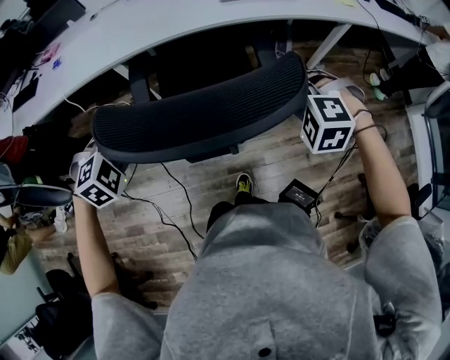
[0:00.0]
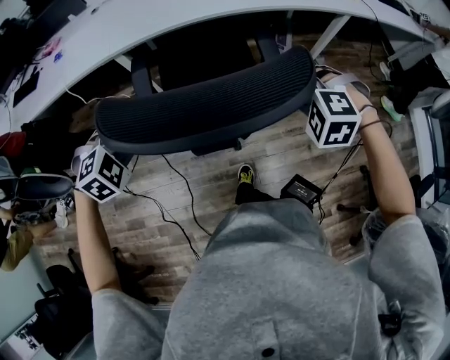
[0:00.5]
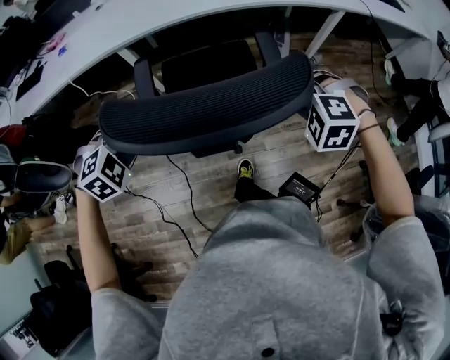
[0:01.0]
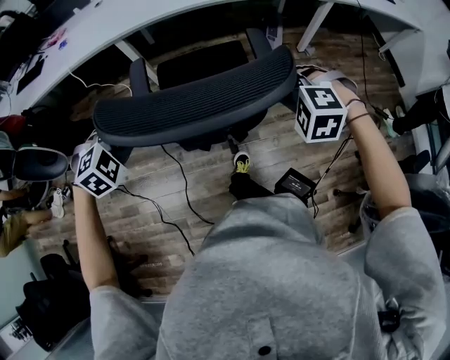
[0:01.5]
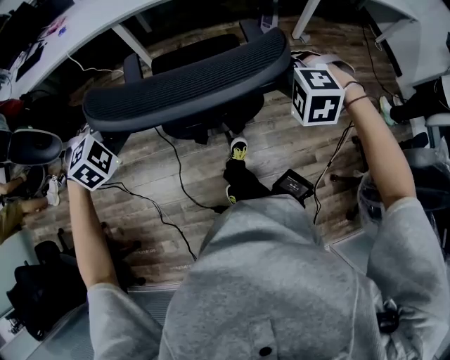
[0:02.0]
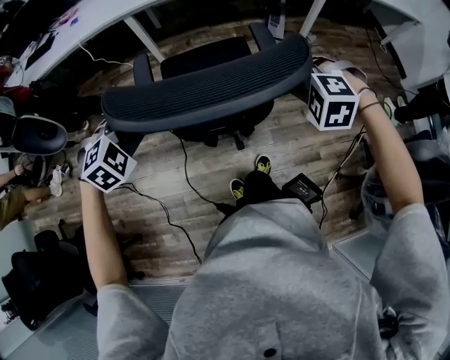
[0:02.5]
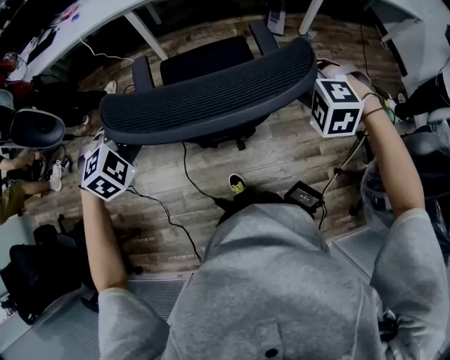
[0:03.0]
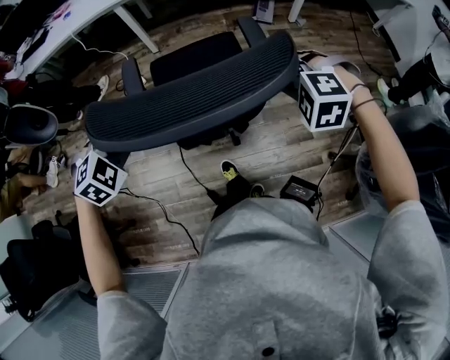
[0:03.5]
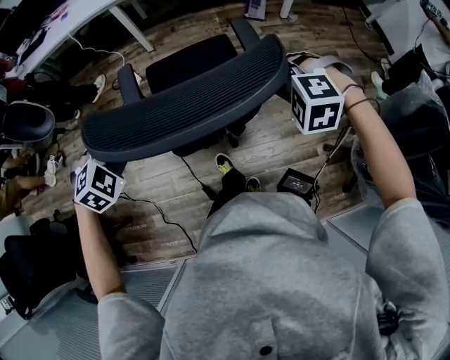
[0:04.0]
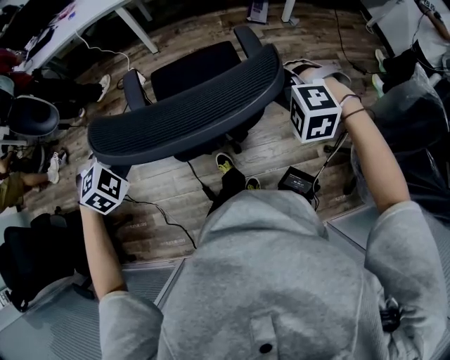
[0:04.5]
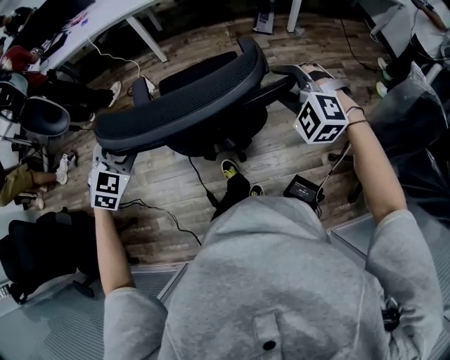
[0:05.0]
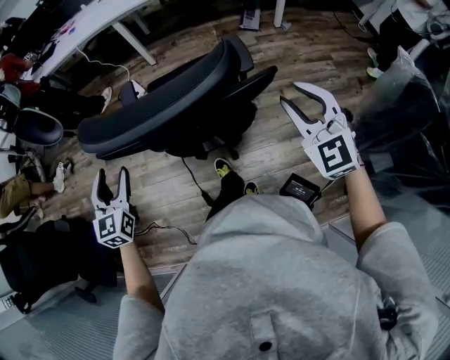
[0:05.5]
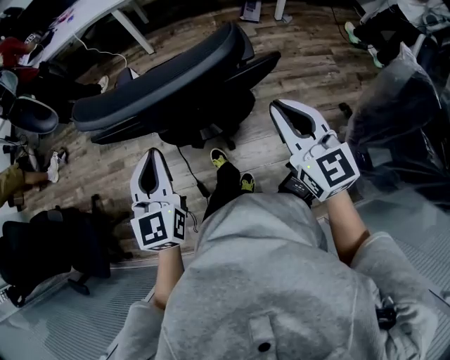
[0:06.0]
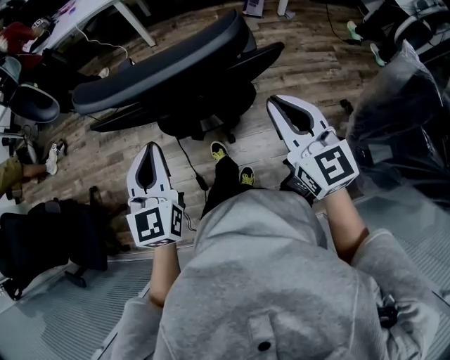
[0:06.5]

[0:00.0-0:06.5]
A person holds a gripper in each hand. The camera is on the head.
0:00.0 to 0:02.0: Both grippers travel together backward, some 25 cm.
0:02.0 to 0:04.5: Both grippers travel together backward, roughly 25 cm.
0:04.5 to 0:06.5: The left gripper is displaced backward, to the right and upward by some 20 cm, points its fingers approximately 40 degrees further upward, and opens, then closes once more. Meanwhile the right gripper moves backward and upward, some 15 cm, and points its fingers about 50 degrees further upward.

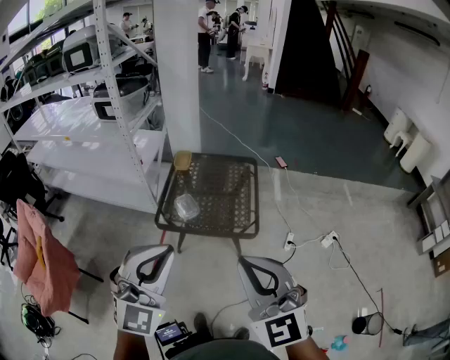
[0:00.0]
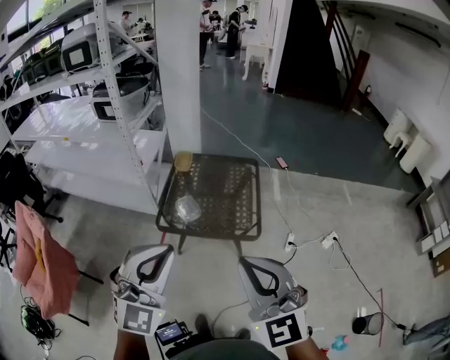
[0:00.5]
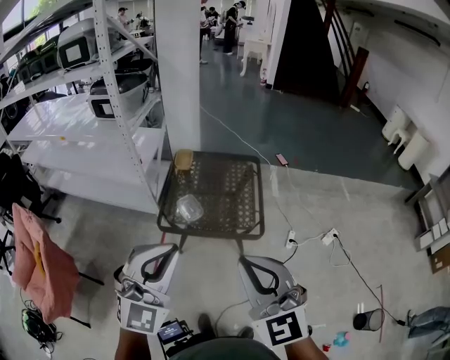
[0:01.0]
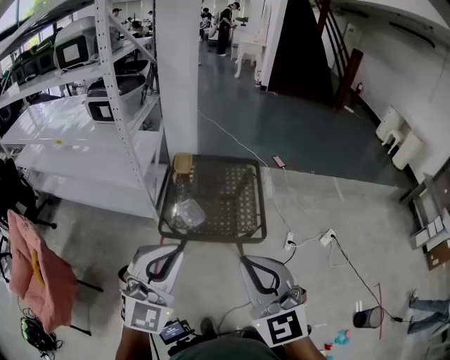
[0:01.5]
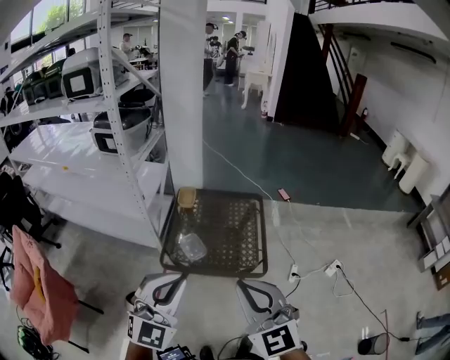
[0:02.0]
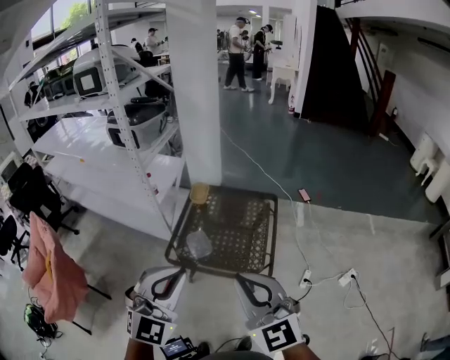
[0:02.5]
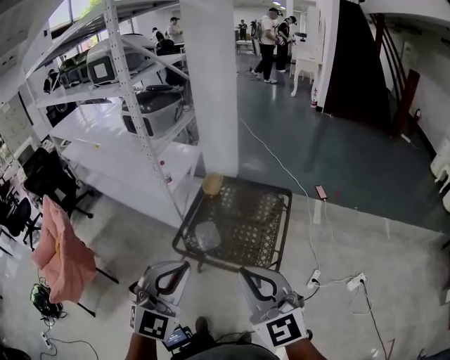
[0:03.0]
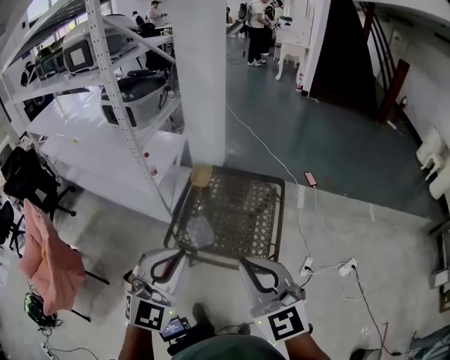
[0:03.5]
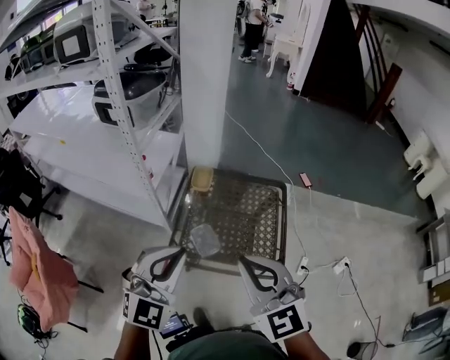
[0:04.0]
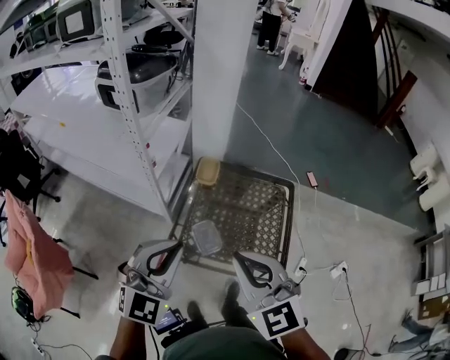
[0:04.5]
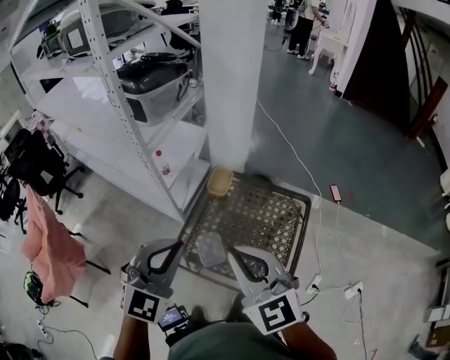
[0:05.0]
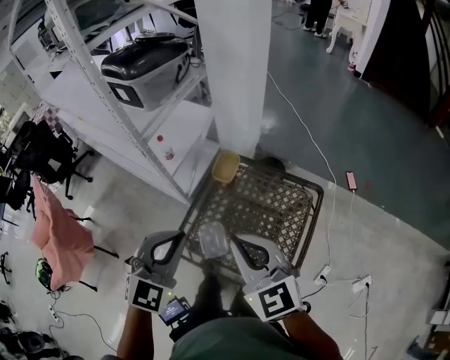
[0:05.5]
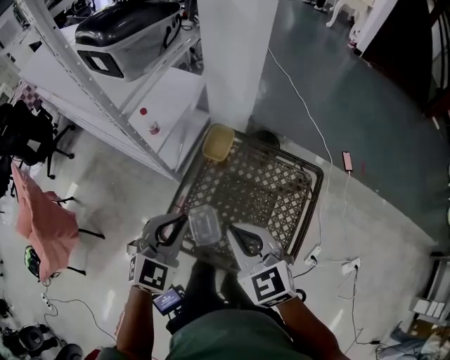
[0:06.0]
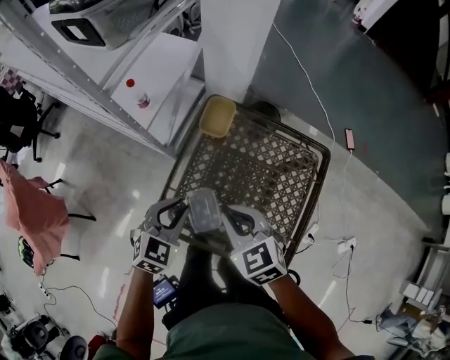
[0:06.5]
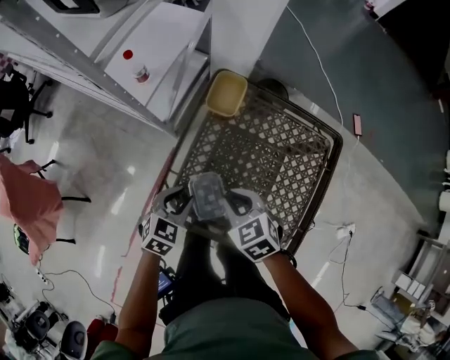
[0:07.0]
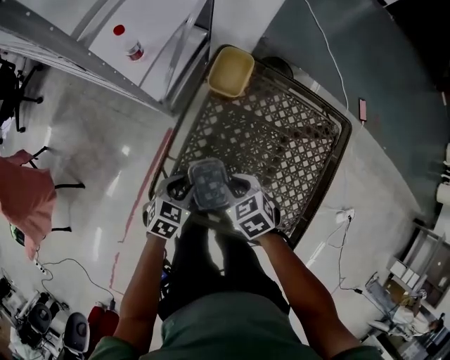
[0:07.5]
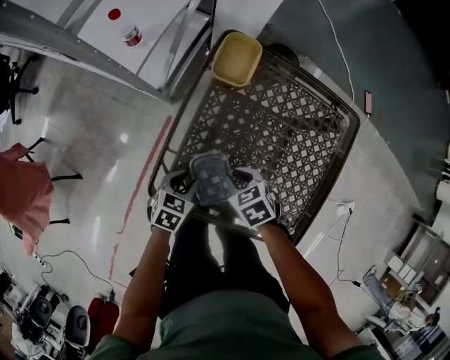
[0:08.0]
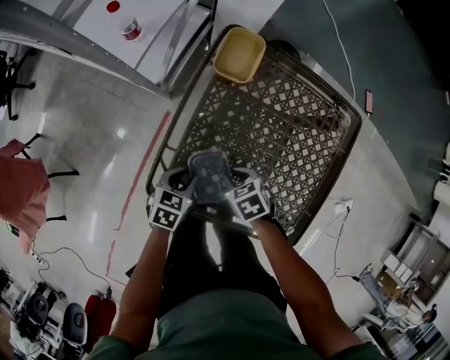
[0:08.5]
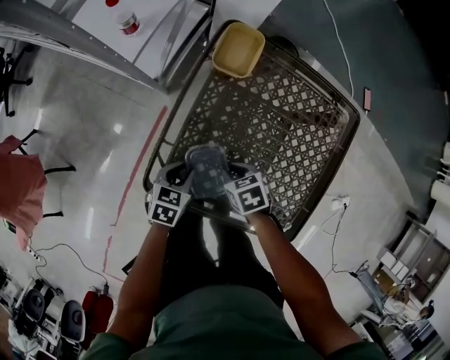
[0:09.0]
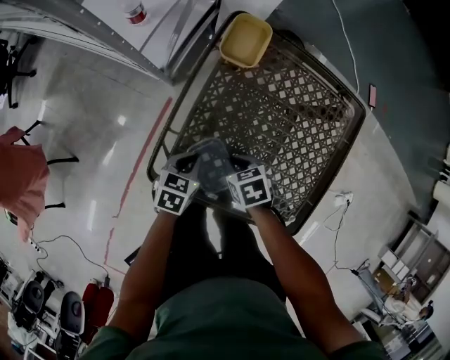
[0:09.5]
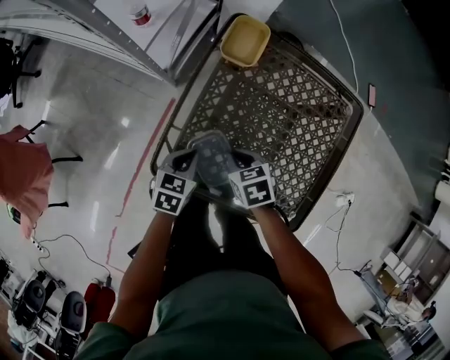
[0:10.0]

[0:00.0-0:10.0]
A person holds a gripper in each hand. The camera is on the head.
0:00.0 to 0:02.0: The grippers both shift forward and to the left by roughly 15 cm.
0:02.0 to 0:04.0: Both grippers travel together forward, about 20 cm.
0:04.0 to 0:06.0: The grippers both shift forward and downward by roughly 35 cm. The left gripper turns by about 30 degrees; the right gripper changes its angle by some 20 degrees.
0:06.0 to 0:08.0: The grippers both shift downward by about 40 cm. The left gripper rotates roughly 50 degrees, and opens; the right gripper angles its fingers downward, by about 40 degrees.
0:08.0 to 0:10.0: The left gripper closes up.

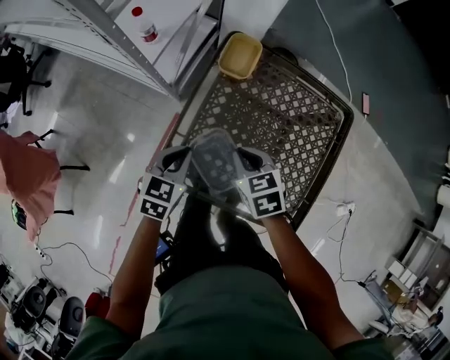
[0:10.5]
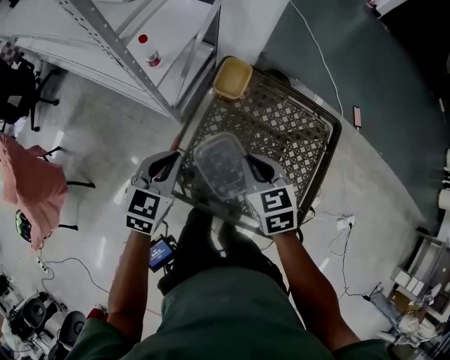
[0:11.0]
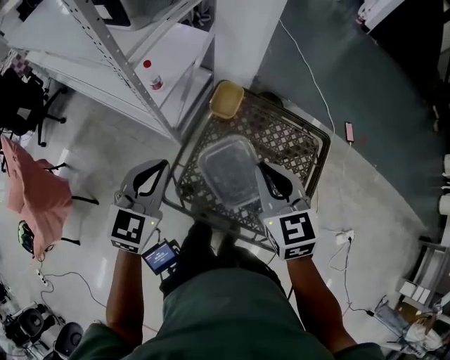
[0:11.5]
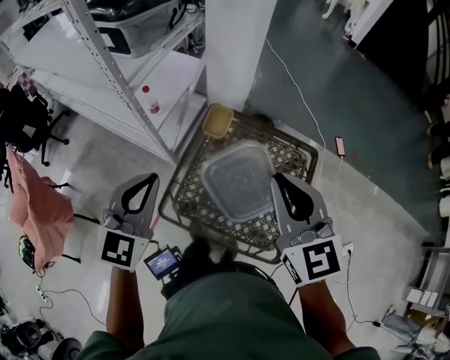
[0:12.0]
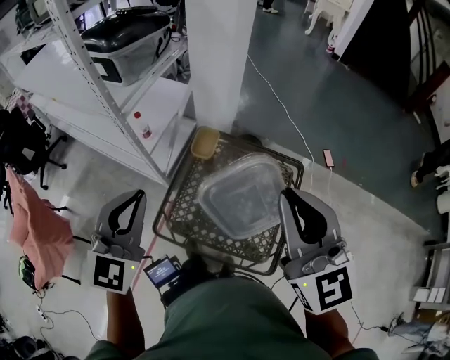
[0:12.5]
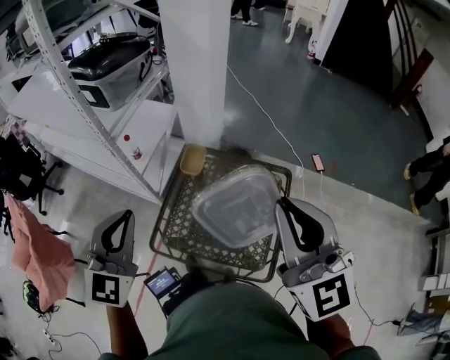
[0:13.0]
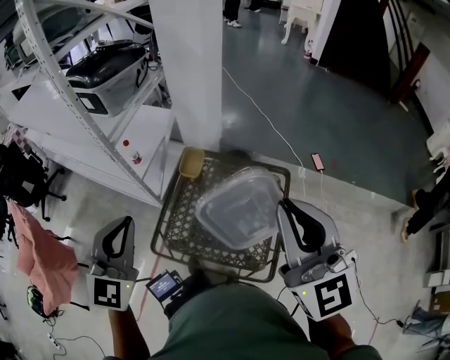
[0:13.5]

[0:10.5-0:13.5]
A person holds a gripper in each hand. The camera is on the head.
0:10.5 to 0:12.0: Both grippers travel together upward, about 35 cm. The left gripper swivels roughly 40 degrees, while the right gripper tilts its fingers some 40 degrees upward.
0:12.0 to 0:13.5: The left gripper shifts some 10 cm upward and backward; the right gripper shifts some 20 cm upward, to the right and backward.

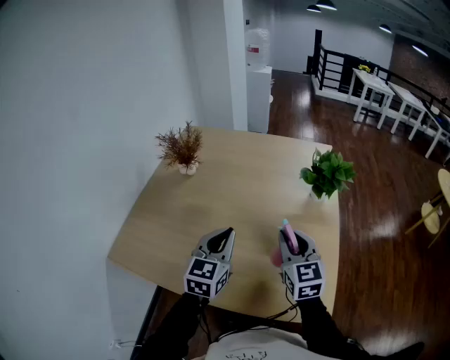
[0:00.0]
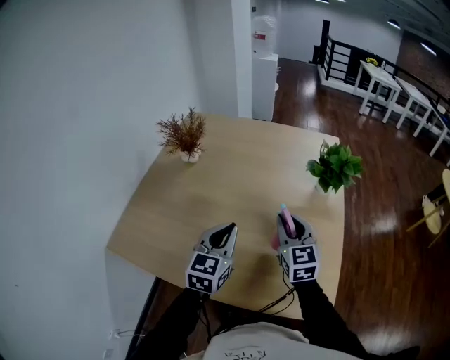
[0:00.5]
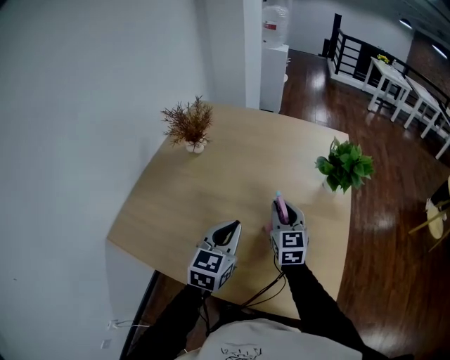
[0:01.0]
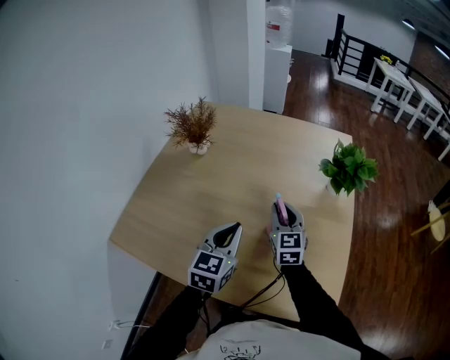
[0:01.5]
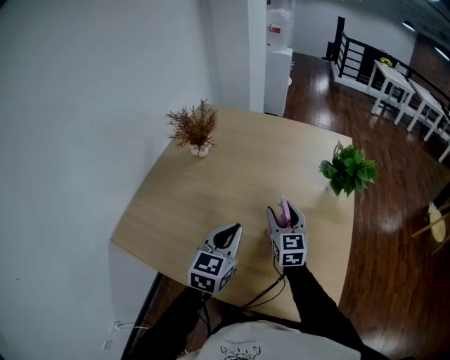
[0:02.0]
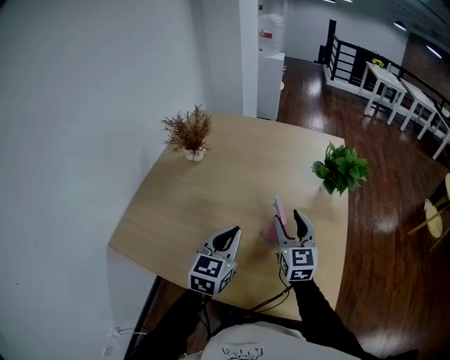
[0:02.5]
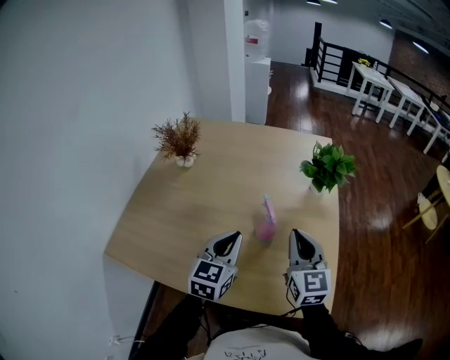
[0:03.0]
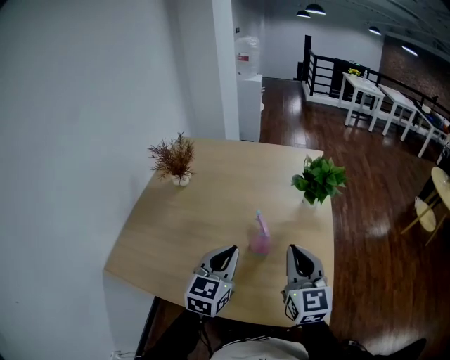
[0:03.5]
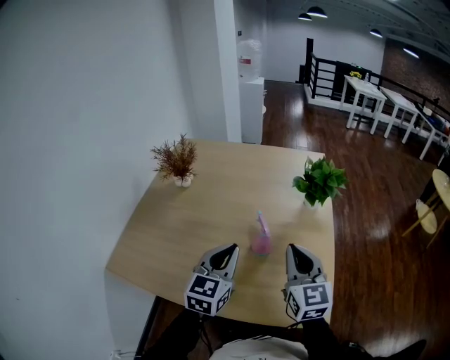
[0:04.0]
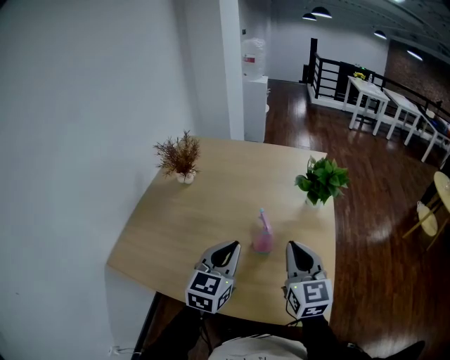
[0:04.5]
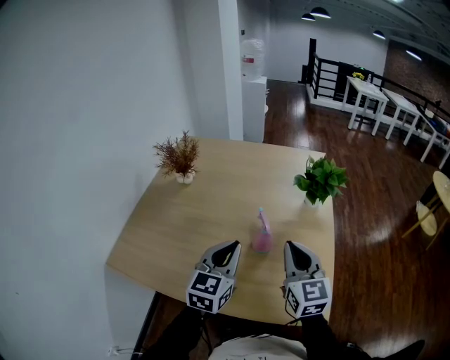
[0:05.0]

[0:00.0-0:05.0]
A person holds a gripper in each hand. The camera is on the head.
0:00.0 to 0:02.5: The right gripper travels forward by some 5 cm, and opens.
0:02.5 to 0:05.0: The left gripper goes roughly 5 cm upward; the right gripper moves backward and upward, some 15 cm, and closes.

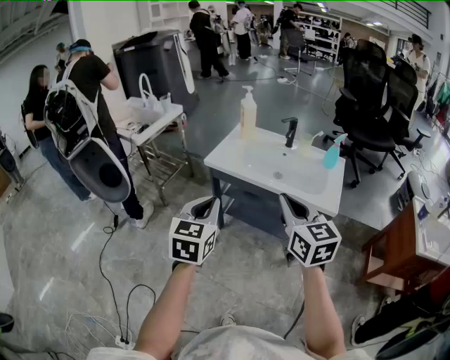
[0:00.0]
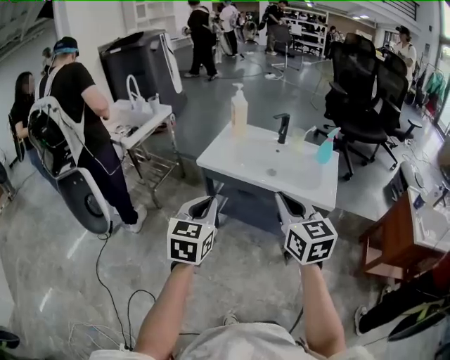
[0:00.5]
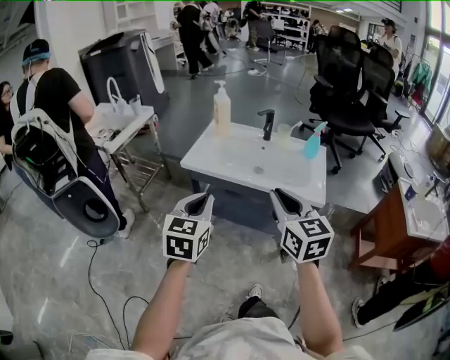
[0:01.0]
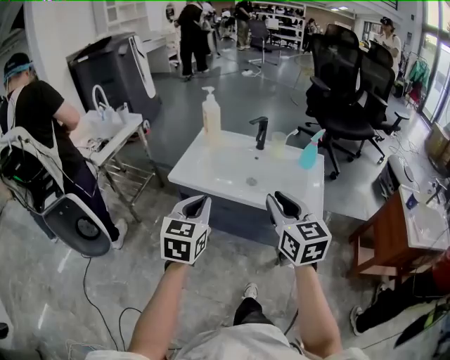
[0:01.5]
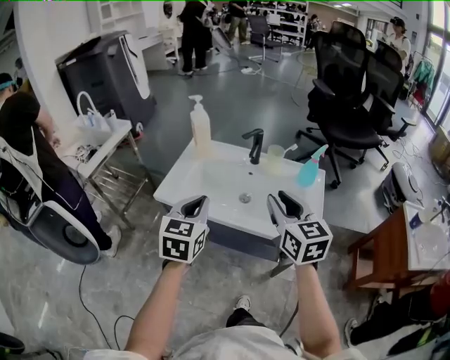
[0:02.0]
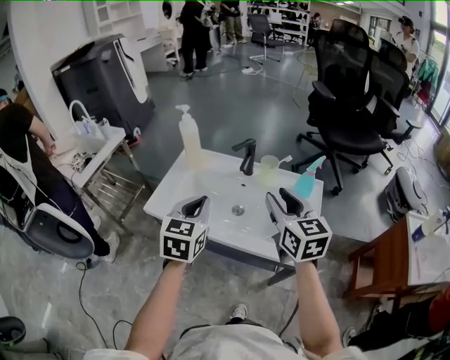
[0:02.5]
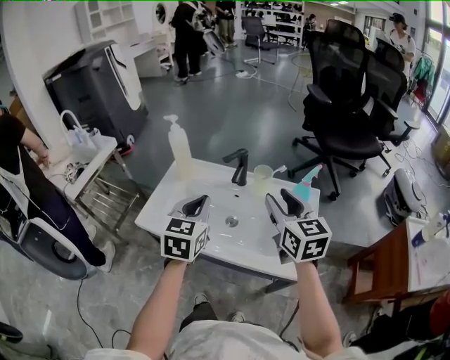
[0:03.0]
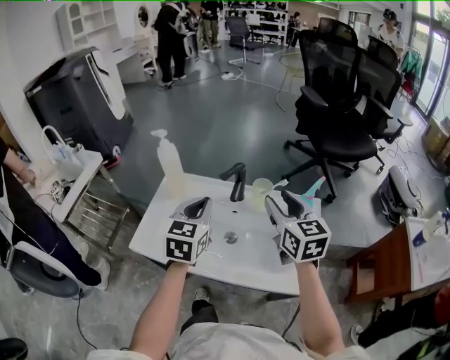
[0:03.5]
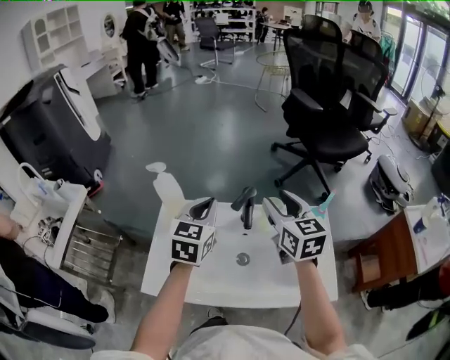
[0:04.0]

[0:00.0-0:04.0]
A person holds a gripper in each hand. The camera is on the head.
0:00.0 to 0:02.0: The left gripper travels forward by some 25 cm. The right gripper goes about 25 cm forward and to the right, and opens its fingers.
0:02.0 to 0:04.0: Both grippers move forward, some 30 cm. The right gripper opens up.
